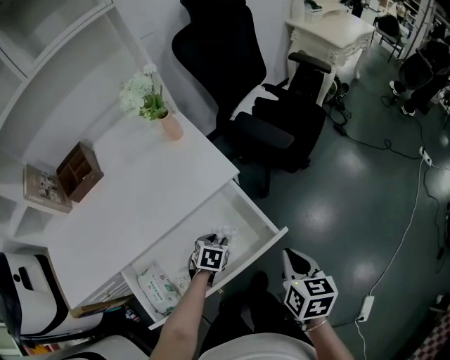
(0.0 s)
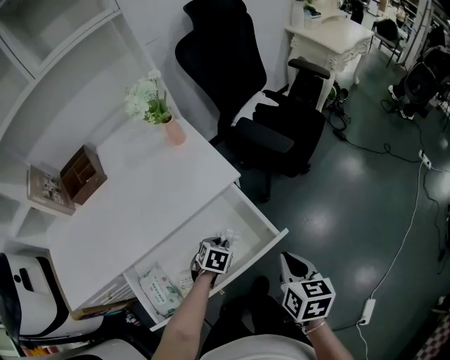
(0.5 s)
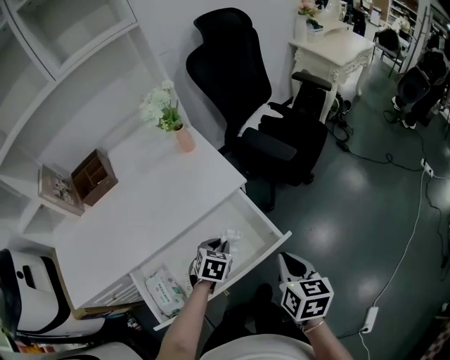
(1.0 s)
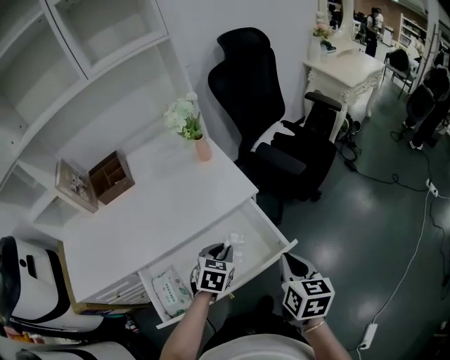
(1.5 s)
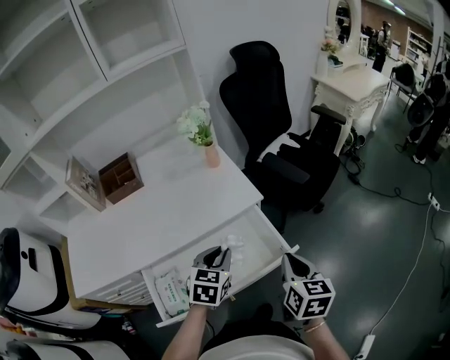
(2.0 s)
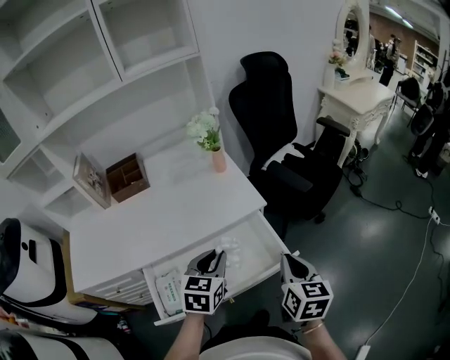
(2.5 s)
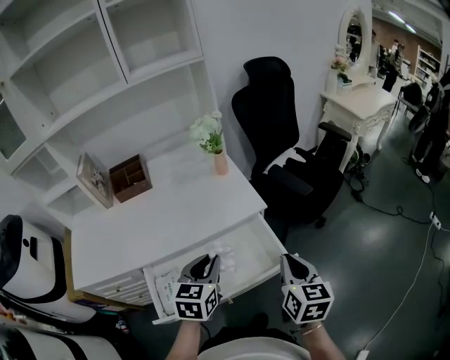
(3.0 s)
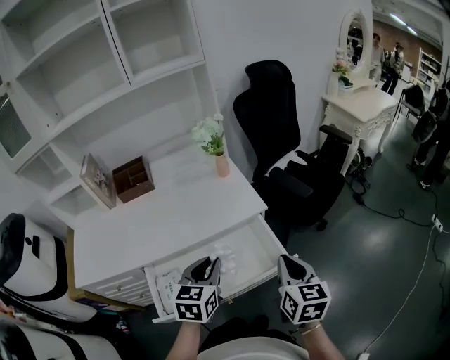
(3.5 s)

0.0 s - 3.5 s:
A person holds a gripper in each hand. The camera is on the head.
0.0 s - 2.0 s: The left gripper heads upward, covering approximately 20 cm, and rotates about 30 degrees; the right gripper goes approximately 5 cm upward.
2.0 s - 3.5 s: The left gripper travels upward by roughly 5 cm.

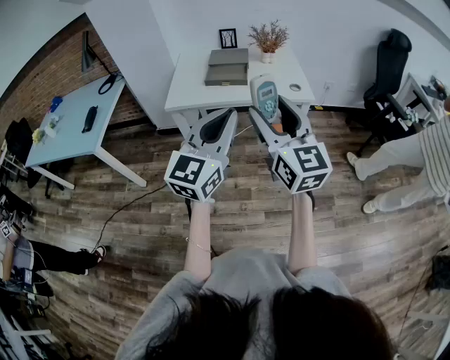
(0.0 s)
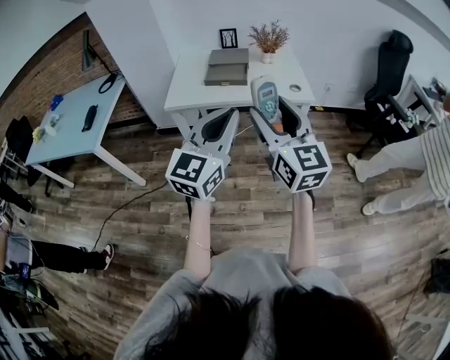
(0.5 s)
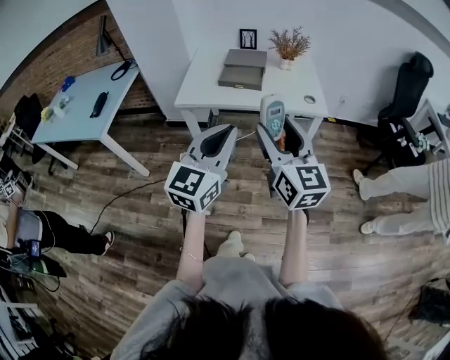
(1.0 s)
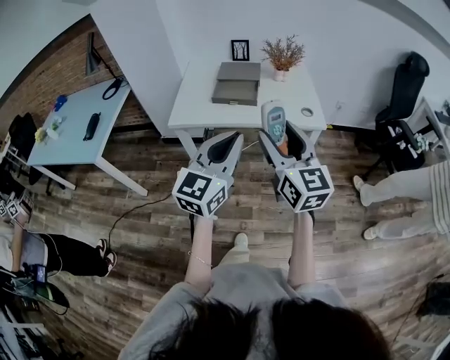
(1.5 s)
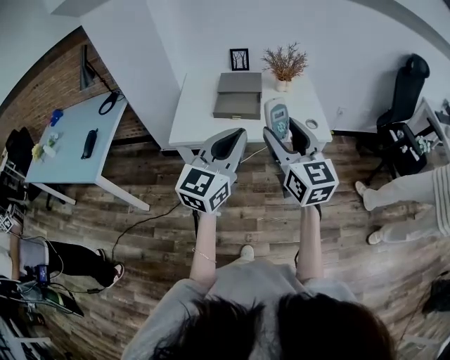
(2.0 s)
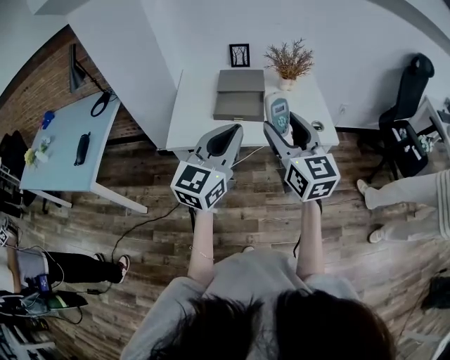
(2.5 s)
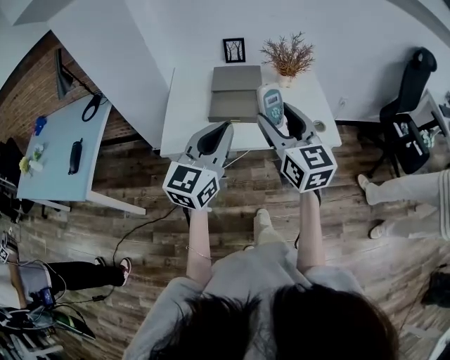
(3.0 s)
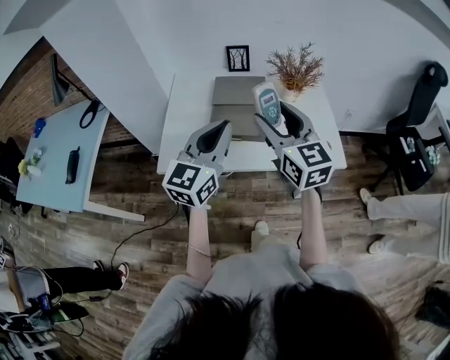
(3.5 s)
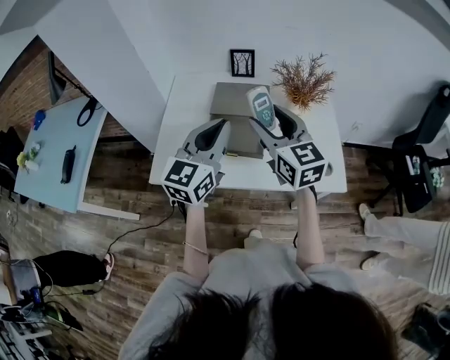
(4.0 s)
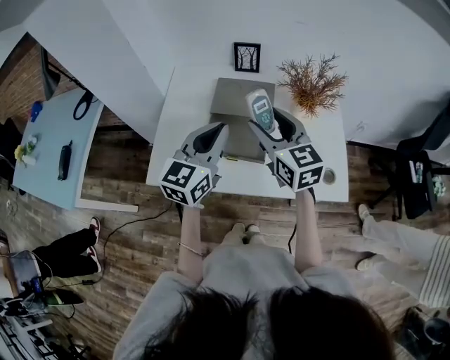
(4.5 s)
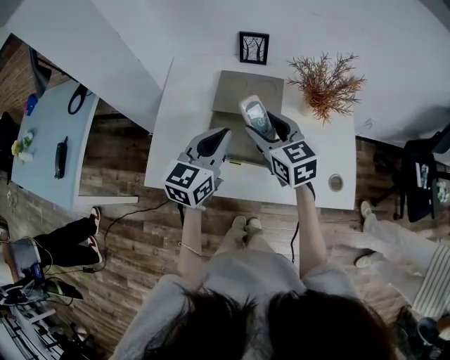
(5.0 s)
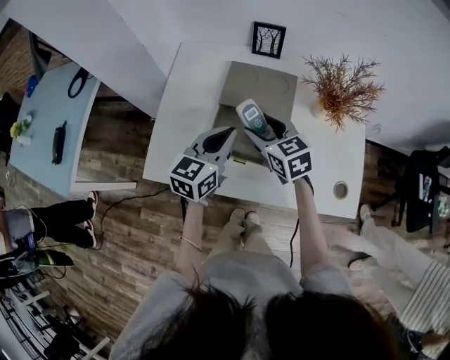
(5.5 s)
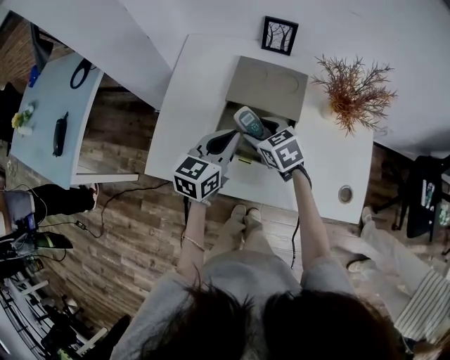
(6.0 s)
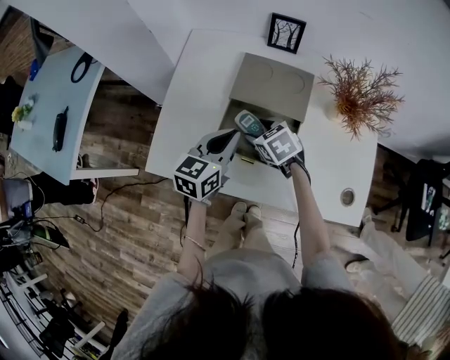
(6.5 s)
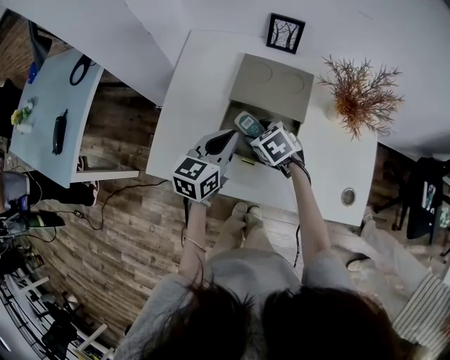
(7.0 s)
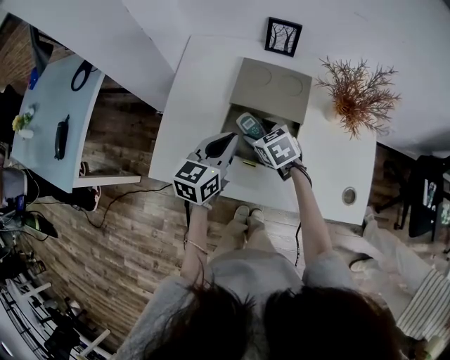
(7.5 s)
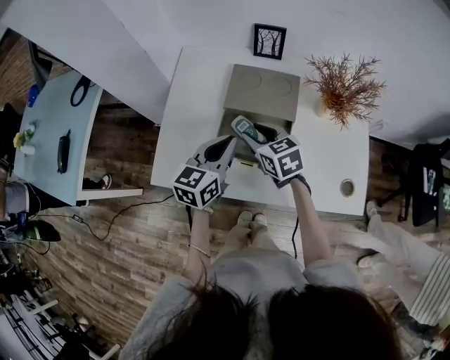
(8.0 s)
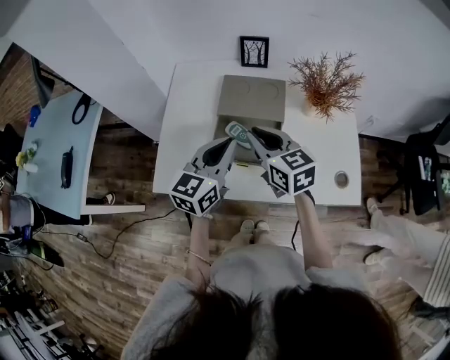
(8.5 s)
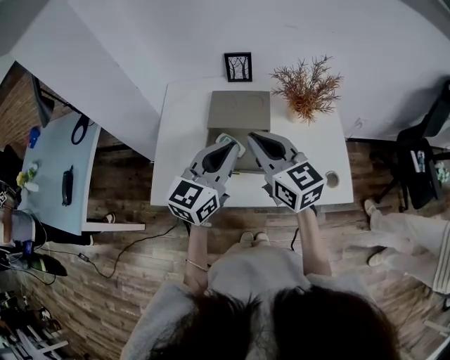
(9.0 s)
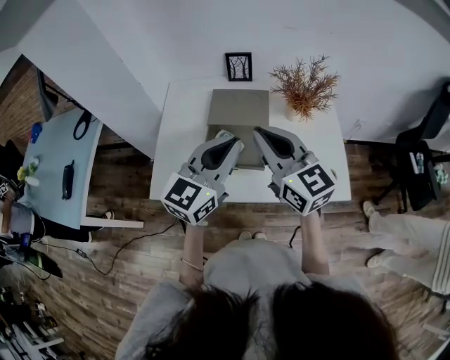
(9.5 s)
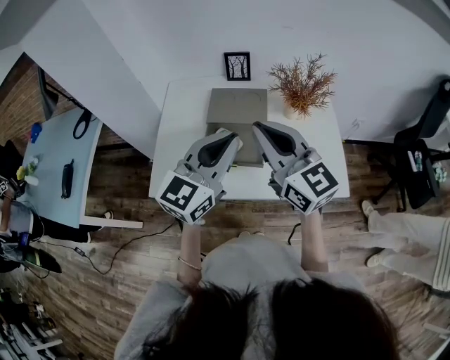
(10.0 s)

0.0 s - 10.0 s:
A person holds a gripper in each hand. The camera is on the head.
0.0 s - 2.0 s: The grippers both shift forward by roughly 20 cm.
2.0 s - 4.0 s: Both grippers move forward, roughly 30 cm.
4.0 s - 6.0 s: The two grippers go roughly 25 cm downward and forward. The left gripper rotates about 30 degrees, while the right gripper points its fingers about 40 degrees further downward.
6.0 s - 8.0 s: There are only small adjustments of the grippers.
8.0 s - 10.0 s: The left gripper heads upward, backward and to the right, covering approximately 20 cm, and turns by approximately 30 degrees. The right gripper goes roughly 30 cm upward and backward, tilts its fingers some 40 degrees upward, and closes its fingers.

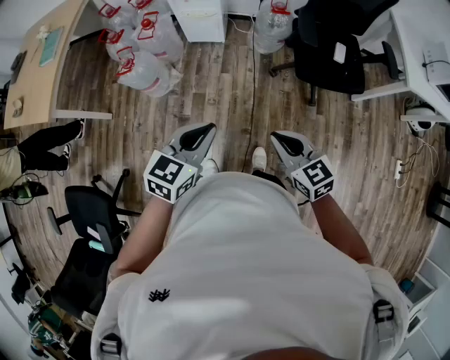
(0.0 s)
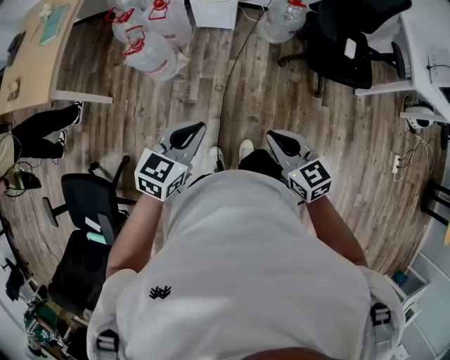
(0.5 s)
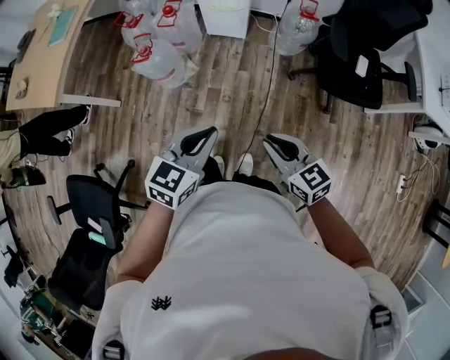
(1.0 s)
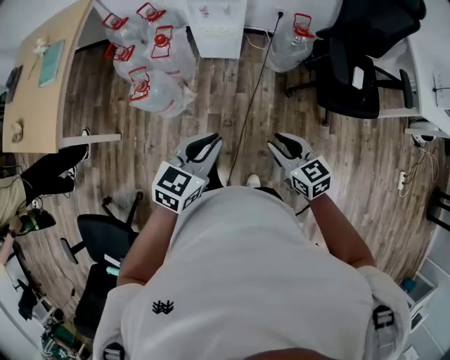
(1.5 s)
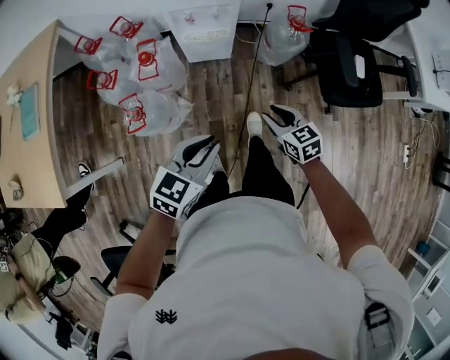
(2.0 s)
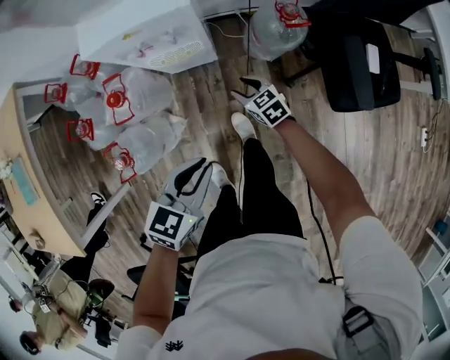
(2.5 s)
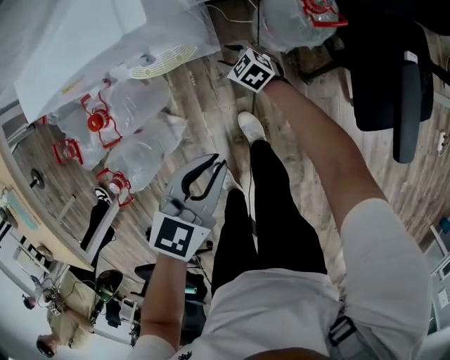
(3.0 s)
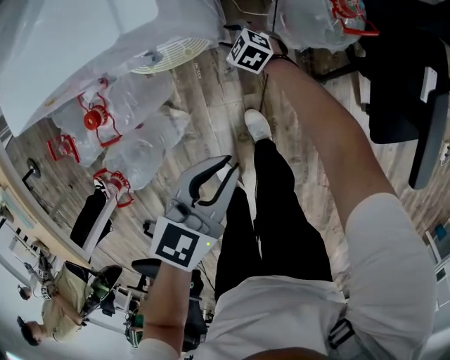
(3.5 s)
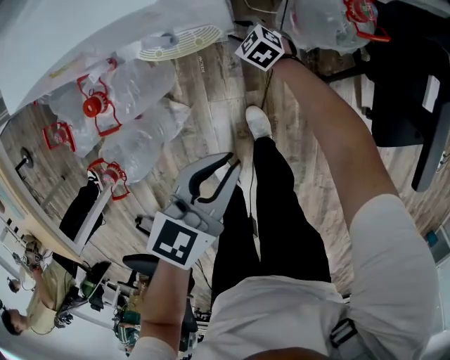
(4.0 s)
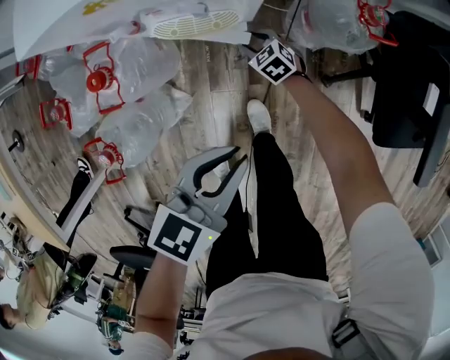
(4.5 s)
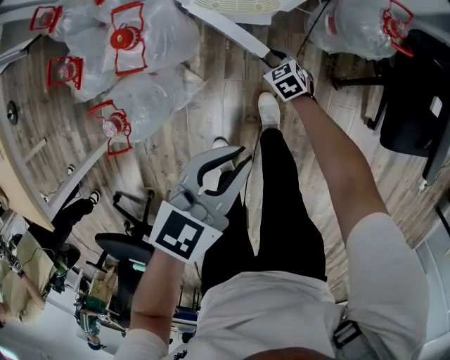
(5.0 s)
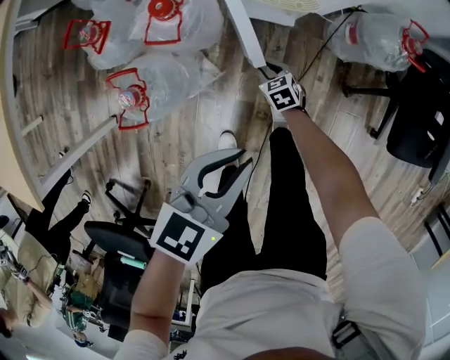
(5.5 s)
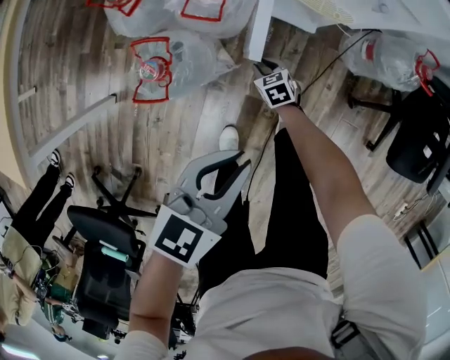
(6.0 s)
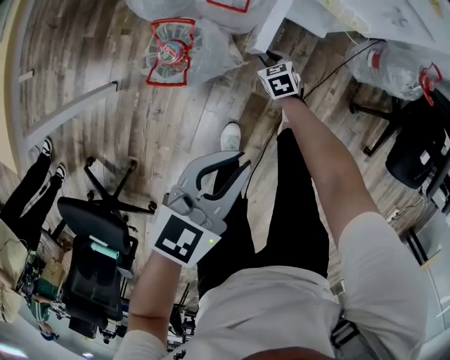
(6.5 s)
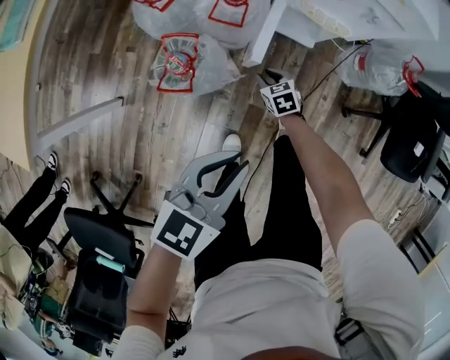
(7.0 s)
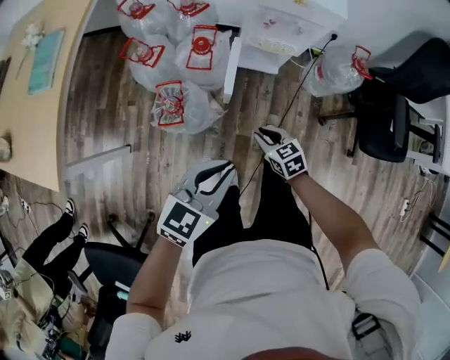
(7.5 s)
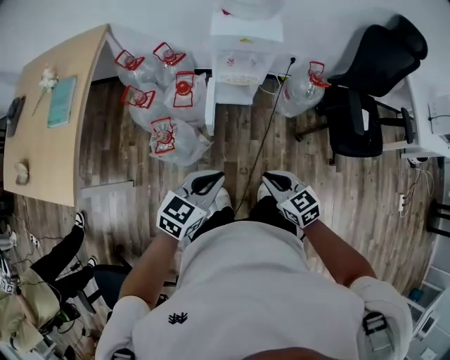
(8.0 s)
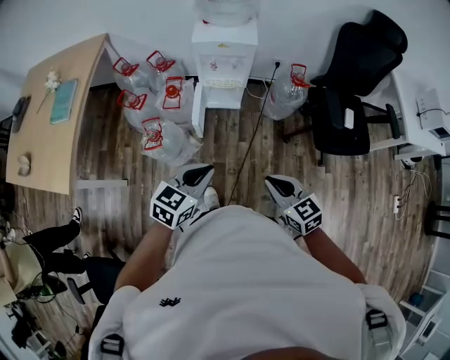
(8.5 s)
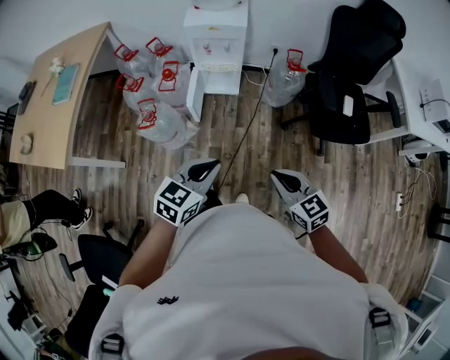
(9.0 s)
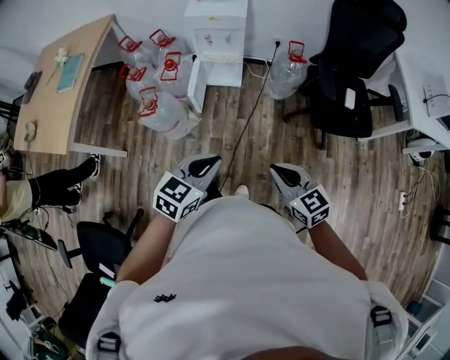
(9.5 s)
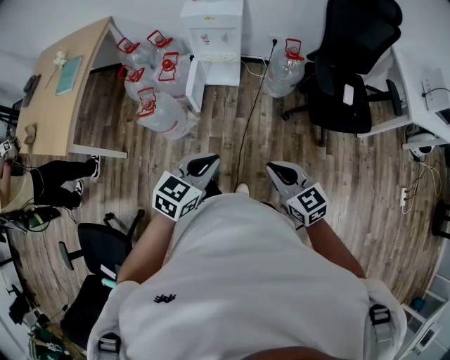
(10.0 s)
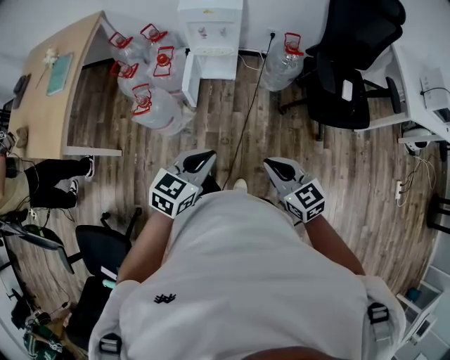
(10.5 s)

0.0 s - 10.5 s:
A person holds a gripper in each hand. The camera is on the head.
0.0 s - 2.0 s: The right gripper shifts some 40 cm forward, to the left and downward, and opens. Meanwhile the left gripper is displaced forward and to the left by roughly 35 cm.
2.0 s - 4.0 s: The right gripper travels forward and downward by some 60 cm, and swivels roughly 30 degrees. The left gripper travels forward and downward by roughly 35 cm.
4.0 s - 6.5 s: Both grippers move to the left and backward, roughly 40 cm. The left gripper changes its angle by roughly 20 degrees.
6.5 s - 8.5 s: The right gripper heads upward, backward and to the right, covering roughly 70 cm, angles its fingers upward, by approximately 30 degrees, and closes its fingers; the left gripper heads upward, to the right and backward, covering approximately 30 cm, and changes its angle by about 20 degrees.
8.5 s - 10.5 s: The grippers both shift backward and to the right by some 15 cm.

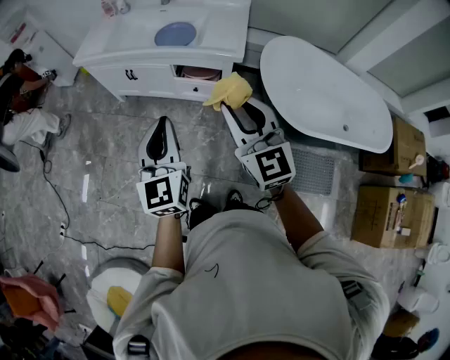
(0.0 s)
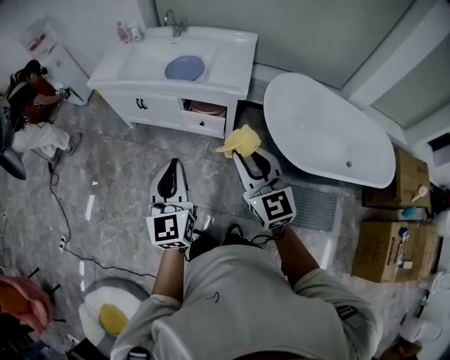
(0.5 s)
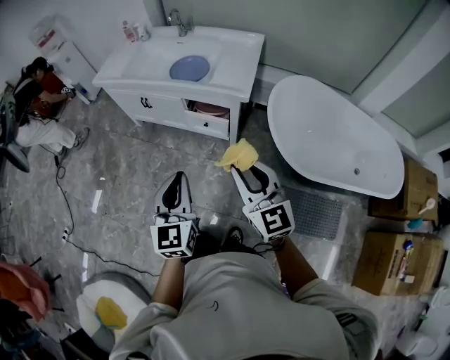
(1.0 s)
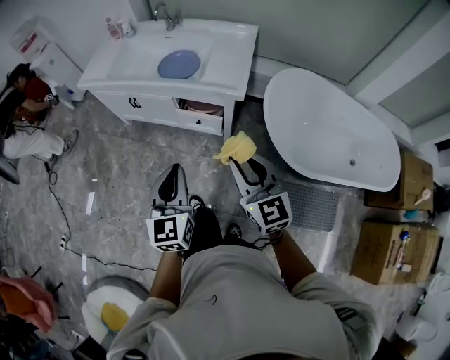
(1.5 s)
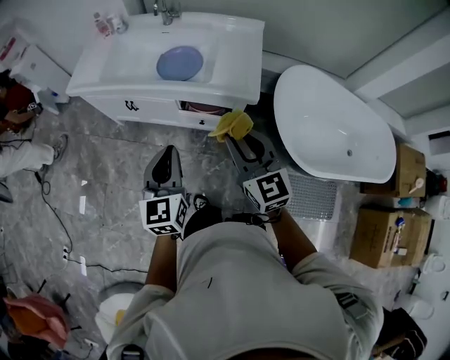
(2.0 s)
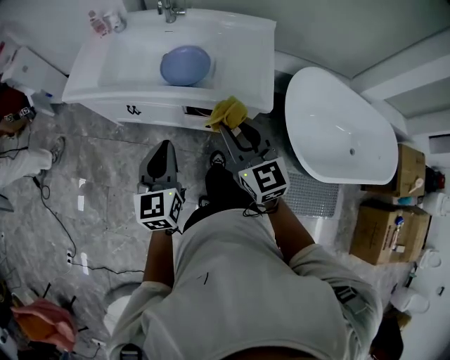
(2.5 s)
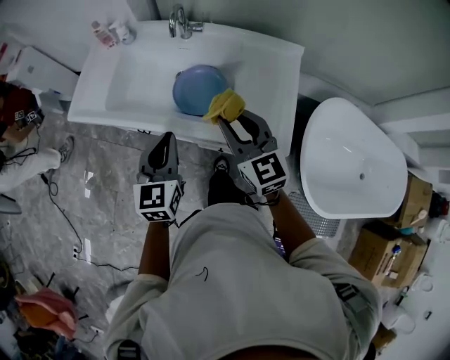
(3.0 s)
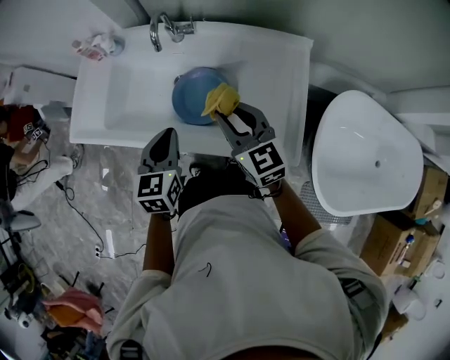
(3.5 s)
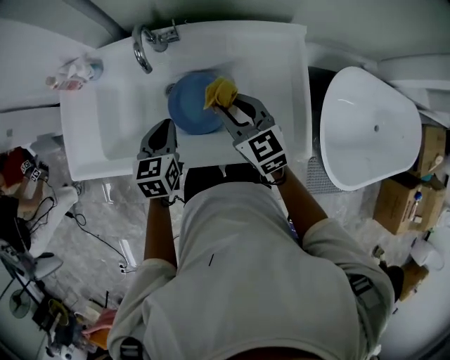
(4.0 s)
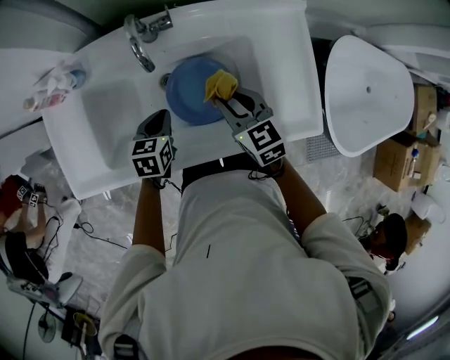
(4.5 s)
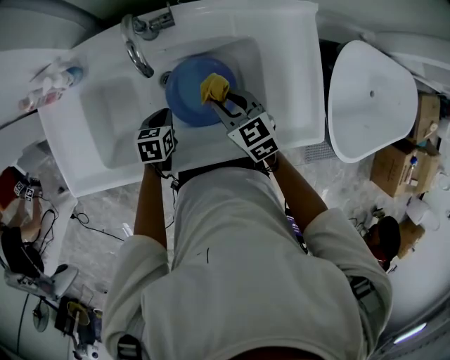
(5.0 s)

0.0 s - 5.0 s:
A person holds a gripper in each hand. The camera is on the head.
0.0 s - 2.5 s: Both grippers move forward, approximately 30 cm.
2.5 s - 5.0 s: The pair of grippers is taken approximately 50 cm. The left gripper angles its fingers downward, by about 40 degrees; the right gripper turns by approximately 30 degrees.
